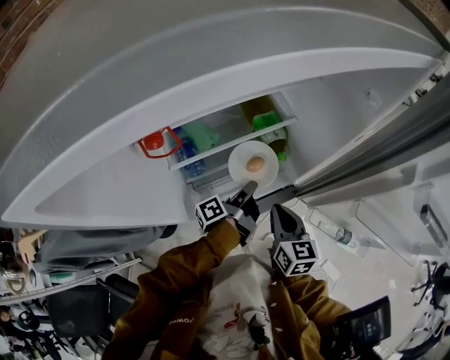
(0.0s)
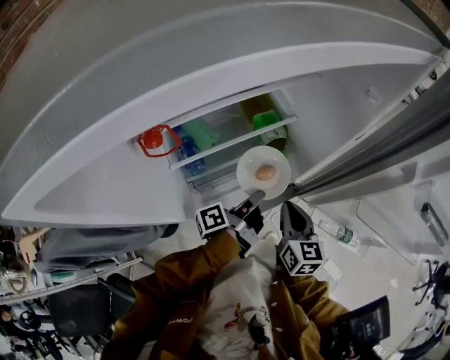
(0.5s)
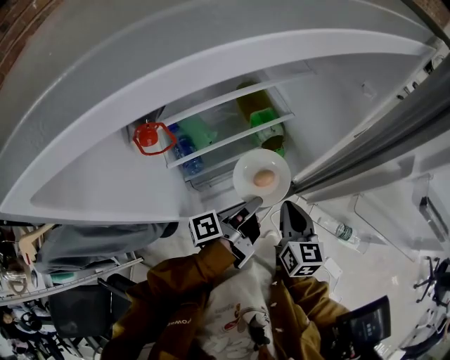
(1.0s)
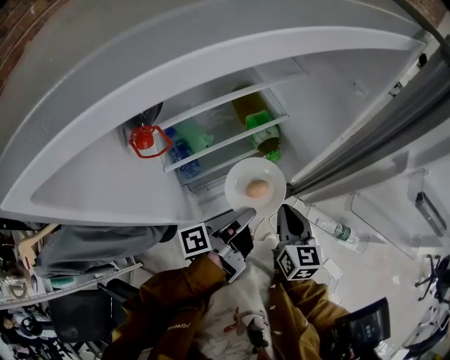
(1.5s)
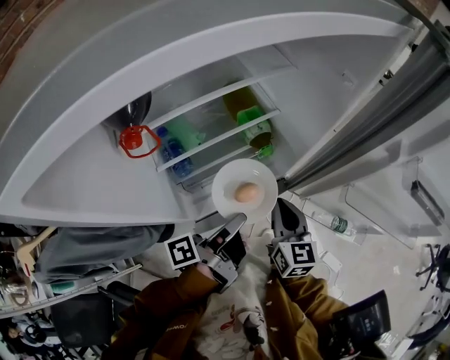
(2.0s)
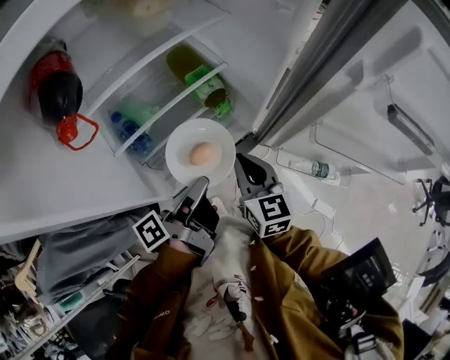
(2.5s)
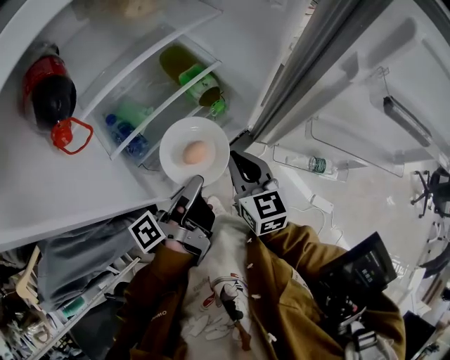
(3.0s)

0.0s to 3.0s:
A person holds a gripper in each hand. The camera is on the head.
0.0s to 1.5s: The left gripper travels upward and backward by about 15 cm.
1.5s to 3.0s: The grippers make only small movements.

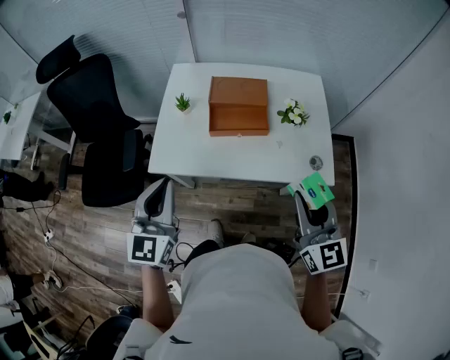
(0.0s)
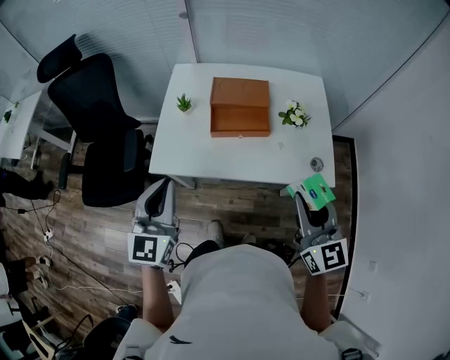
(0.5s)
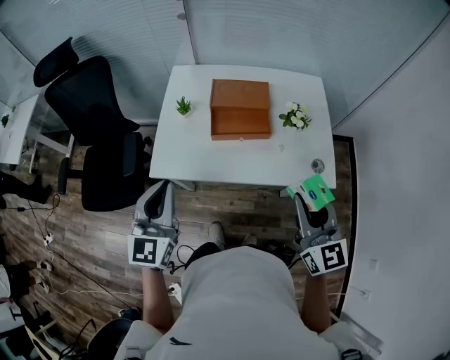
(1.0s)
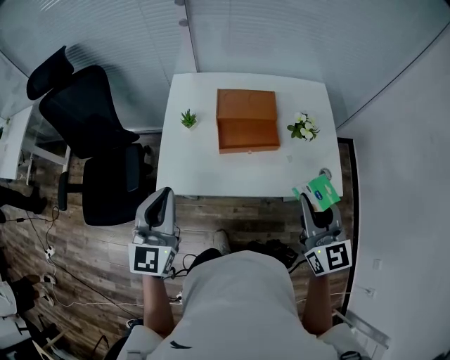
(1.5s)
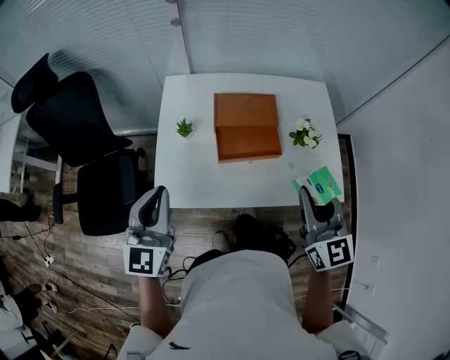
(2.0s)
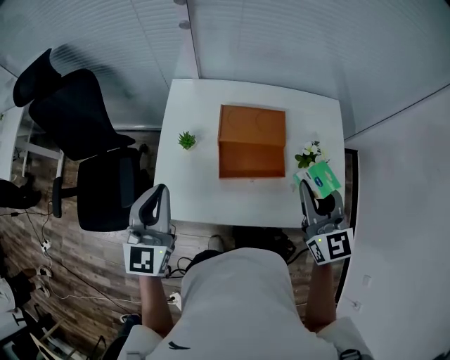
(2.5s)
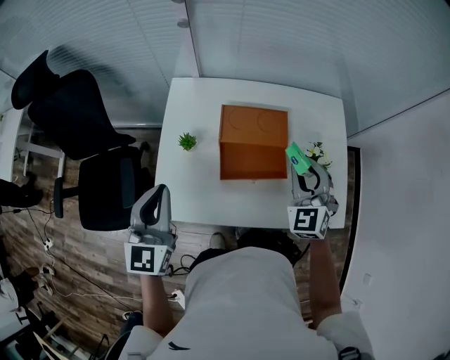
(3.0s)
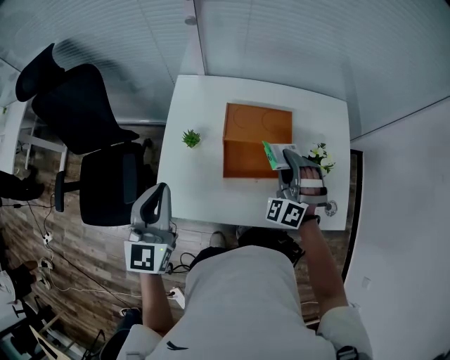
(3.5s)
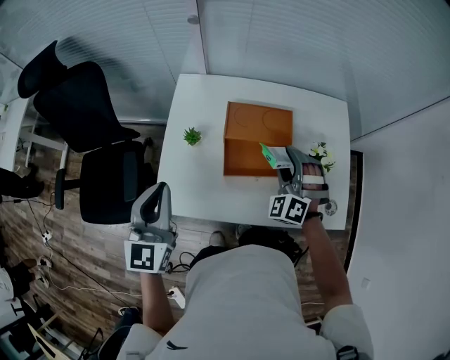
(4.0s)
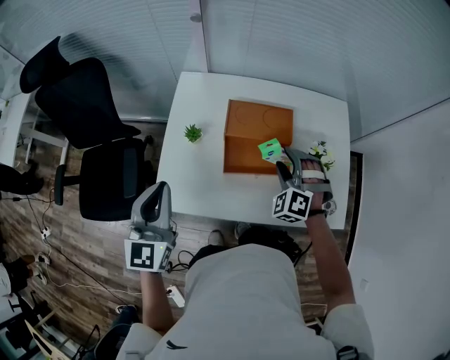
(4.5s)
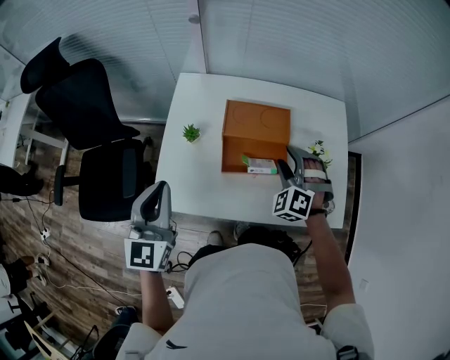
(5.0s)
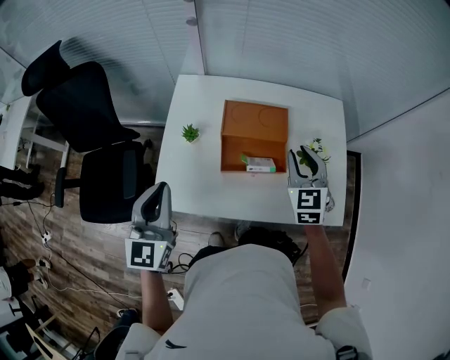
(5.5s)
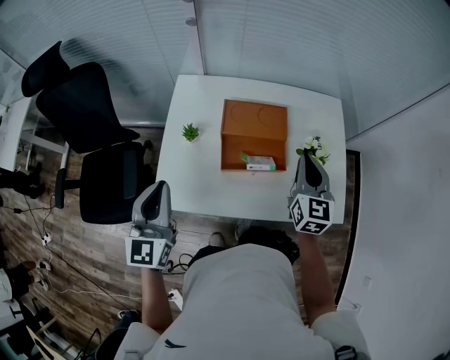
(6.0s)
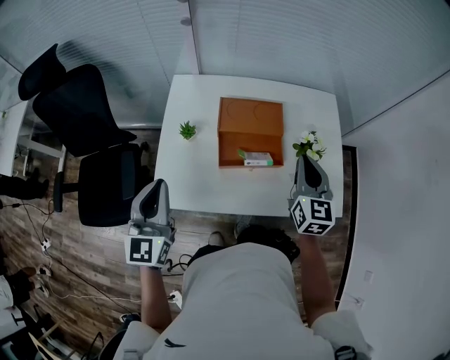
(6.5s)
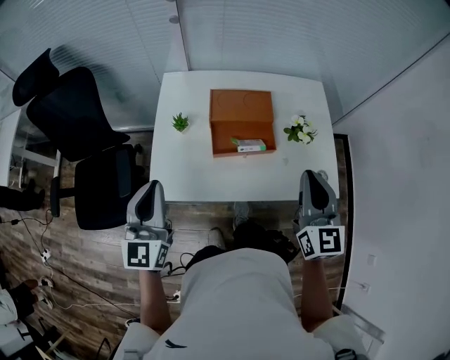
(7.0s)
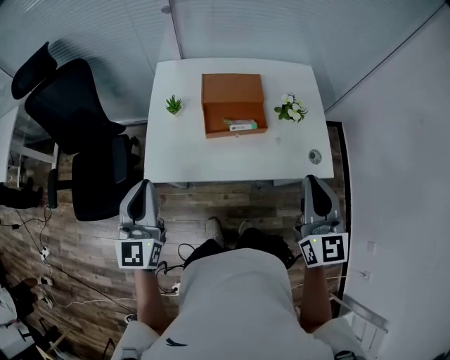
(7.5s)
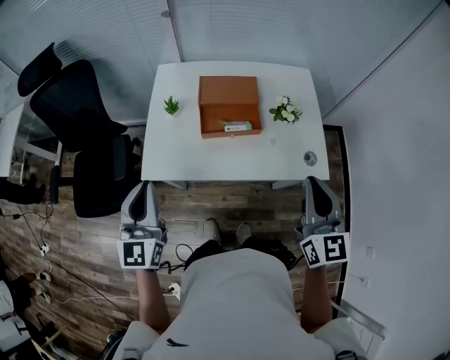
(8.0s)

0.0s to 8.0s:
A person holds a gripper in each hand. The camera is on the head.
0.0s to 2.0s: The left gripper heads forward and to the left, covering some 15 cm. The right gripper travels forward by some 15 cm.
2.0s to 4.0s: The left gripper shifts about 5 cm forward, while the right gripper goes some 25 cm forward and downward, rotates around the line of its fingers by approximately 70 degrees, counterclockwise from behind, and opens its fingers.
4.0s to 6.0s: The right gripper moves to the right and upward, roughly 10 cm, rotates around the line of its fingers by some 70 degrees, clockwise from behind, and closes up.
6.0s to 8.0s: The left gripper goes about 15 cm backward. Meanwhile the right gripper shifts roughly 25 cm backward and upward.

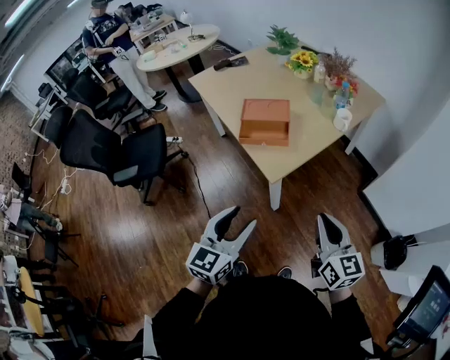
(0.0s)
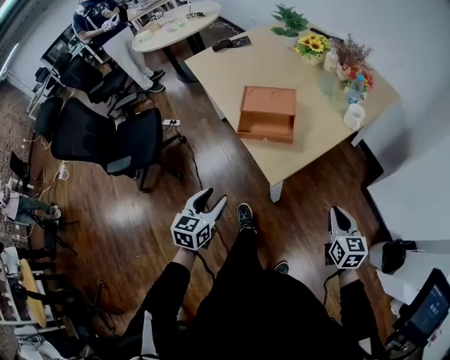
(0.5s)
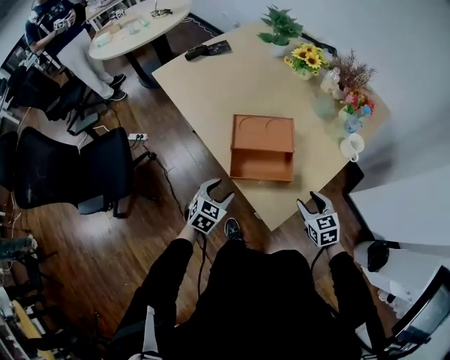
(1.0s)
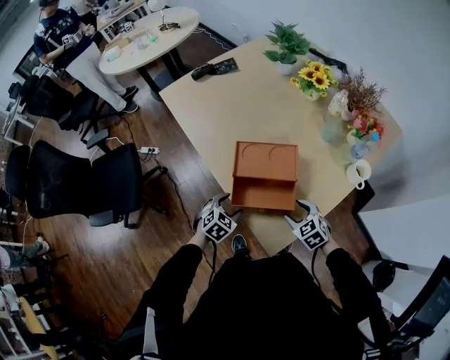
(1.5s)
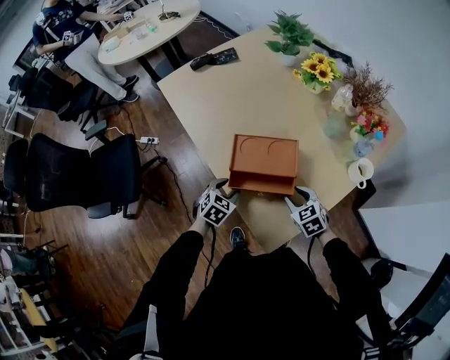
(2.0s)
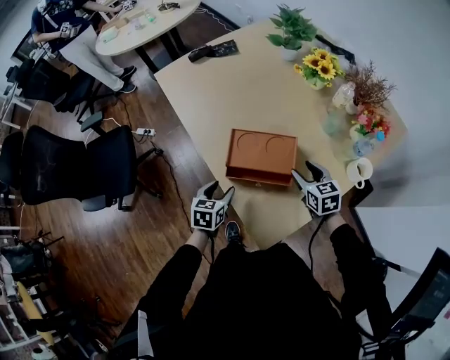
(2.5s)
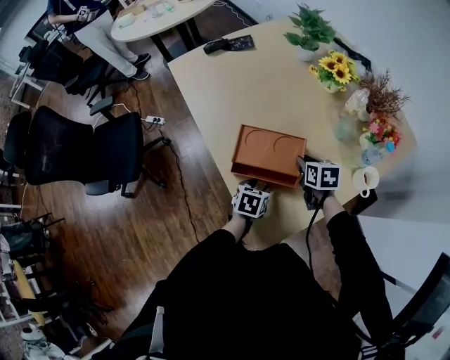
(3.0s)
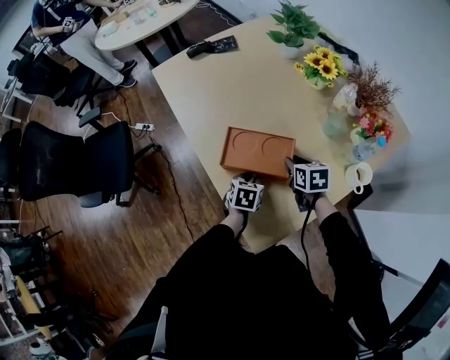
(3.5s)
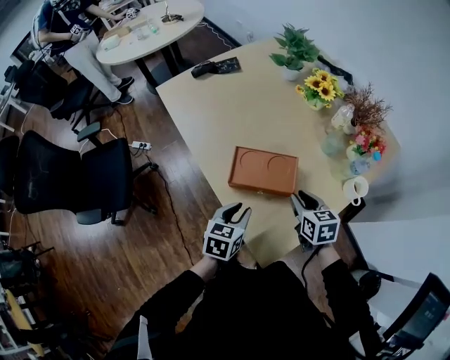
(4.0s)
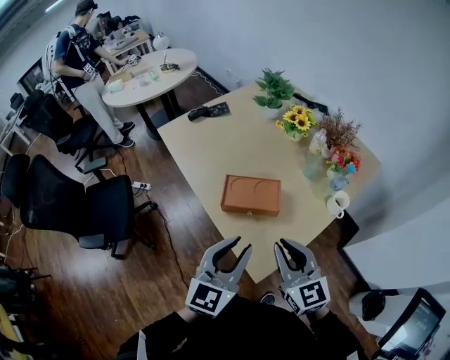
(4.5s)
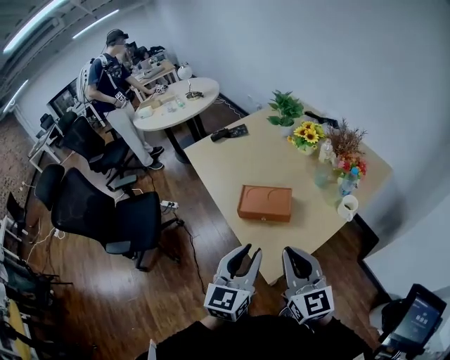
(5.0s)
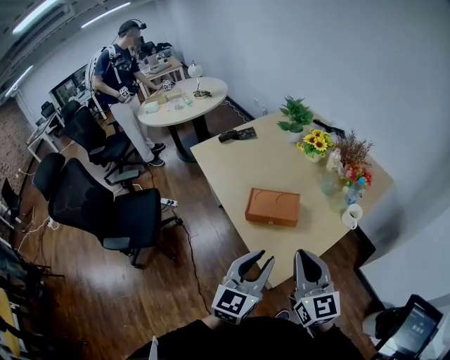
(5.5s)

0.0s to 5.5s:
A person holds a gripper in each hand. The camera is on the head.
0.0s to 2.0s: The pair of grippers is taken forward, roughly 50 cm. Both grippers travel together downward, roughly 25 cm. The left gripper points its fingers roughly 40 degrees further downward, while the right gripper points its fingers about 40 degrees further downward, and opens up.
2.0s to 3.5s: The right gripper shifts some 10 cm forward, and rotates some 30 degrees. The left gripper goes about 10 cm to the right, swivels about 30 degrees, and closes up.
3.5s to 5.5s: The two grippers go some 40 cm upward and backward. The right gripper points its fingers some 50 degrees further upward, and closes, while the left gripper tips its fingers upward by some 50 degrees.

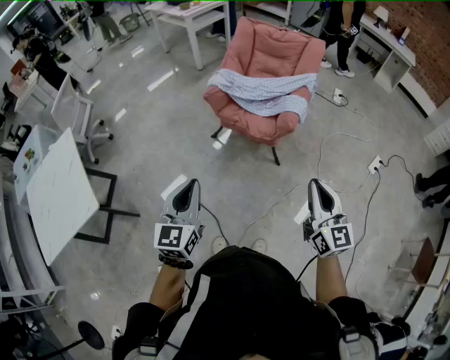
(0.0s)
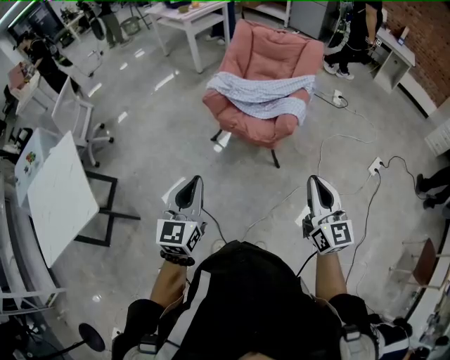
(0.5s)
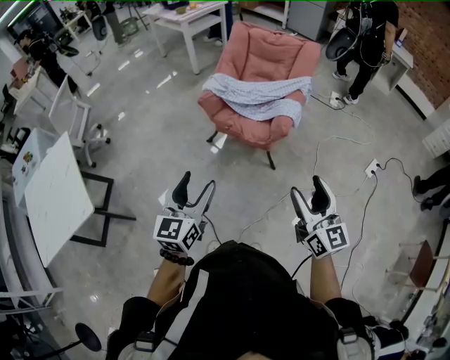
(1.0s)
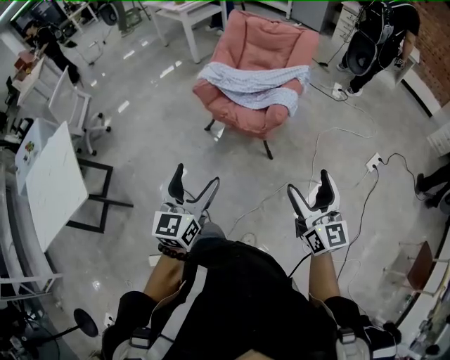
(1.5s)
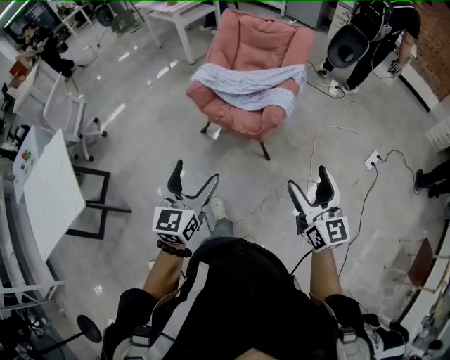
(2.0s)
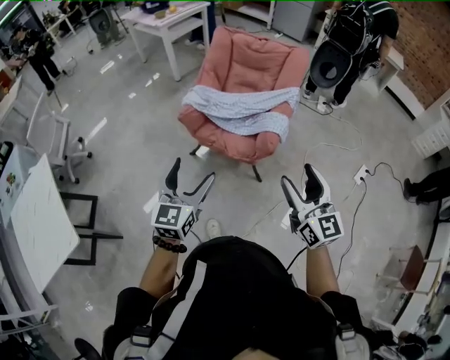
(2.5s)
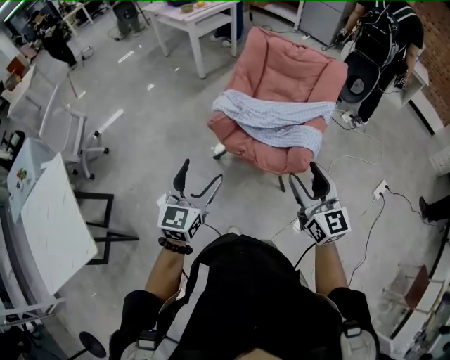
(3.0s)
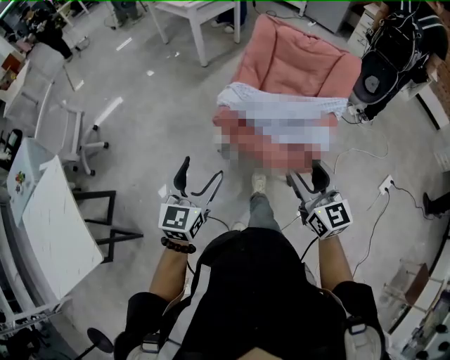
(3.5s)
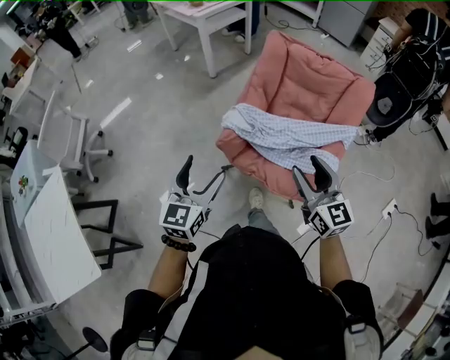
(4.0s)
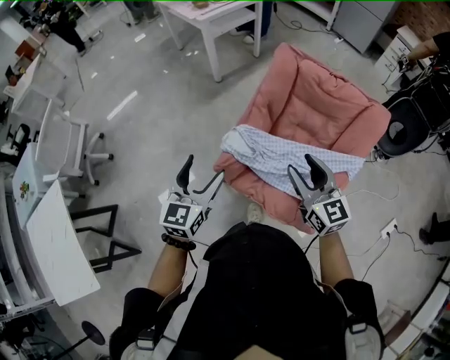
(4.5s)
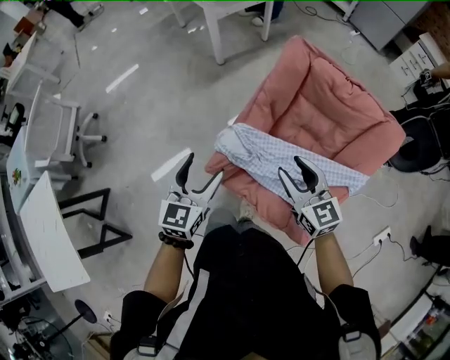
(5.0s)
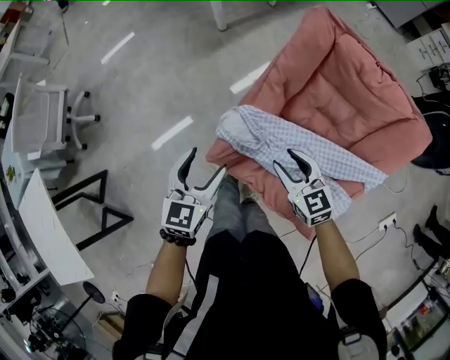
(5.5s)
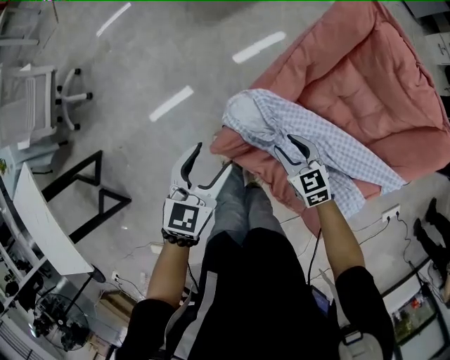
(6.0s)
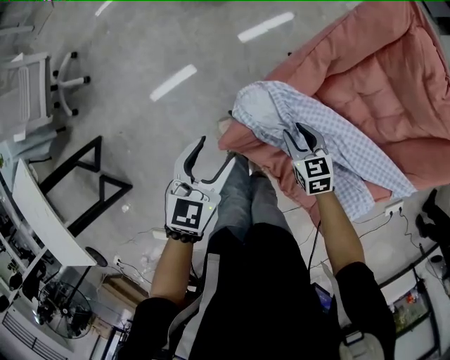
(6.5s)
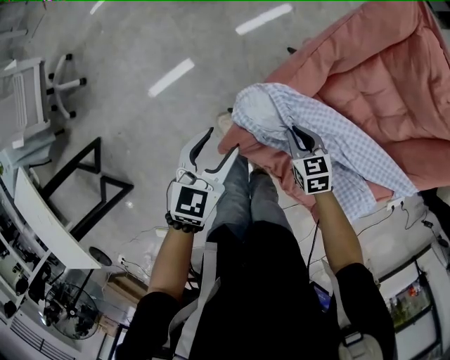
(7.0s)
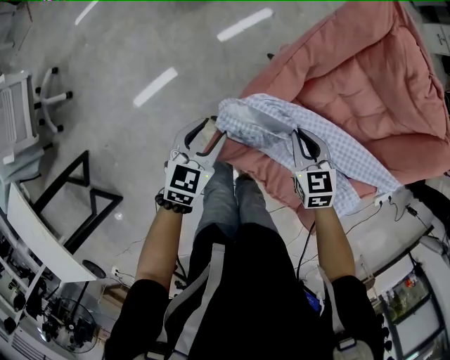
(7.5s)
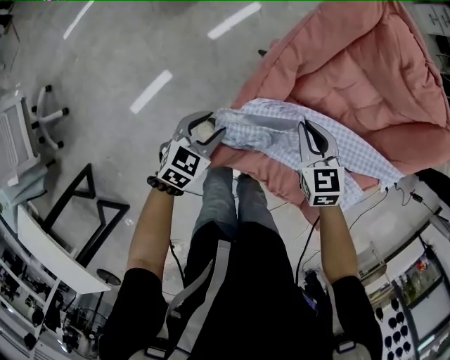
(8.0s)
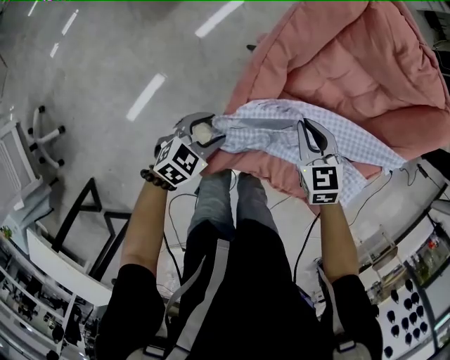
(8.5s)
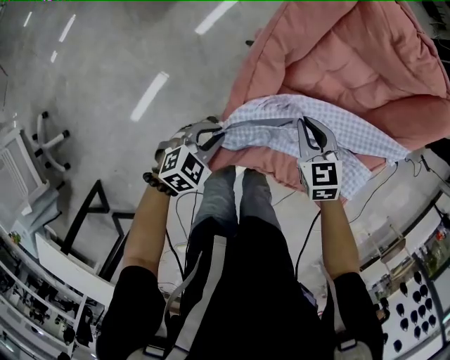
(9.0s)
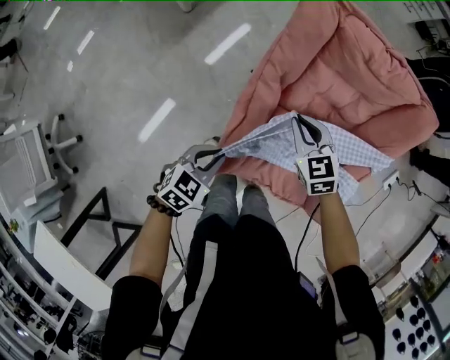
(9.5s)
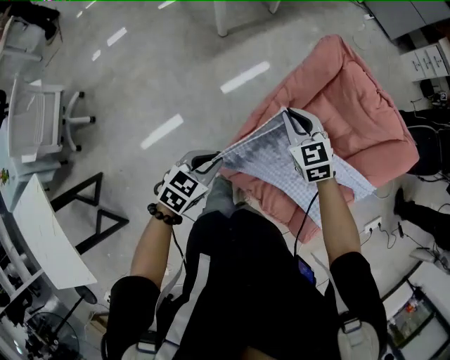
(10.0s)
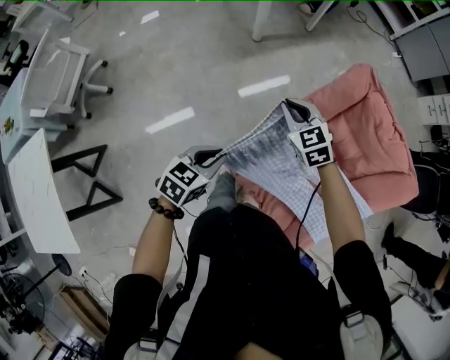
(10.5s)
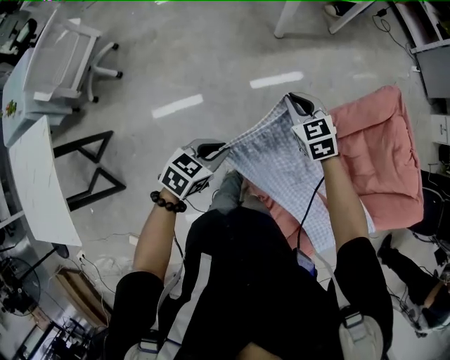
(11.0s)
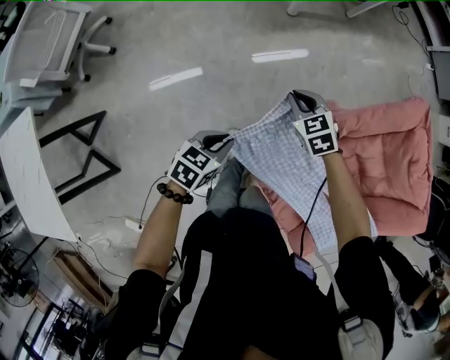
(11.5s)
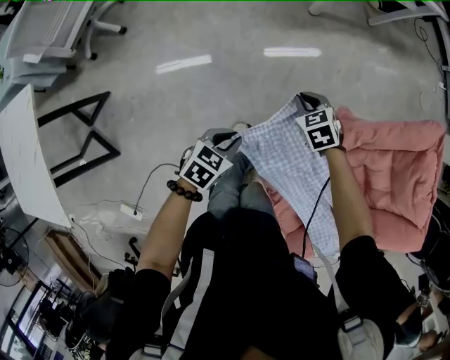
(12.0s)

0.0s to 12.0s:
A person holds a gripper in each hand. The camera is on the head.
0.0s to 2.0s: Both grippers move to the right, about 10 cm. The left gripper opens up, while the right gripper opens.
2.0s to 4.0s: Both grippers are carried forward, some 50 cm.
4.0s to 6.0s: The left gripper goes about 35 cm forward and downward, and swivels about 20 degrees. The right gripper shifts some 50 cm downward and forward, and tips its fingers downward by some 30 degrees.
6.0s to 8.0s: The right gripper goes downward and returns, roughly 10 cm each way, rotates some 20 degrees, and closes its fingers. Meanwhile the left gripper travels downward by approximately 15 cm, and swivels roughly 30 degrees.
8.0s to 10.0s: The two grippers go about 20 cm upward. The right gripper rotates some 20 degrees.
10.0s to 12.0s: Both grippers travel together downward and to the left, approximately 30 cm. The left gripper turns by roughly 30 degrees. The right gripper rotates about 40 degrees.
